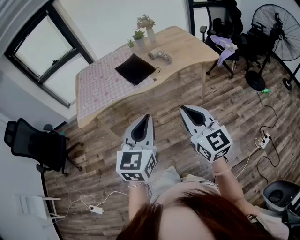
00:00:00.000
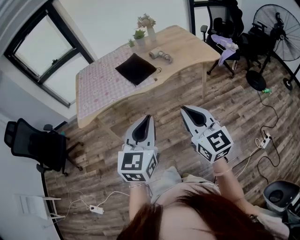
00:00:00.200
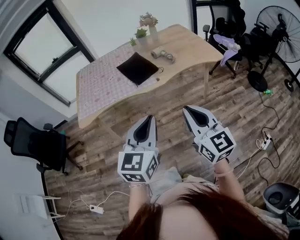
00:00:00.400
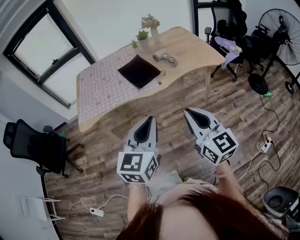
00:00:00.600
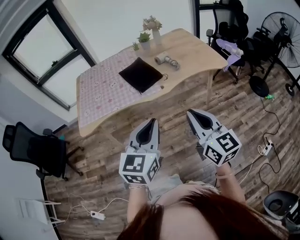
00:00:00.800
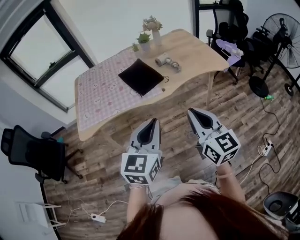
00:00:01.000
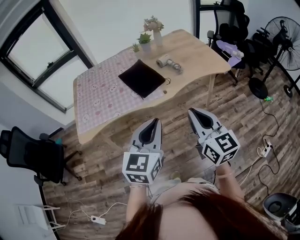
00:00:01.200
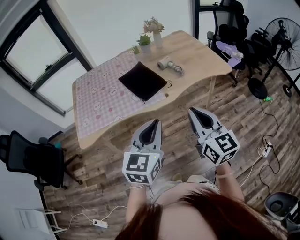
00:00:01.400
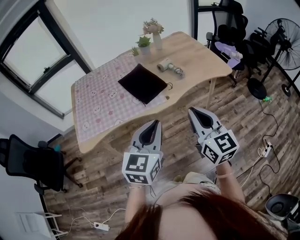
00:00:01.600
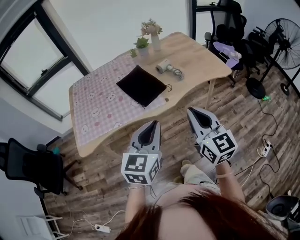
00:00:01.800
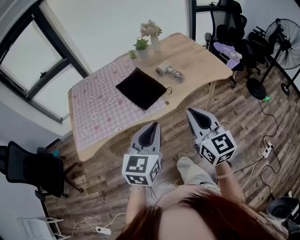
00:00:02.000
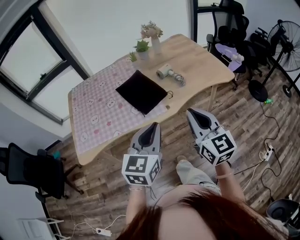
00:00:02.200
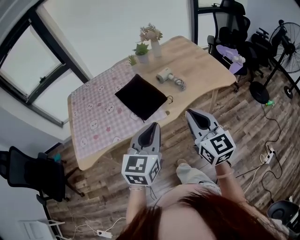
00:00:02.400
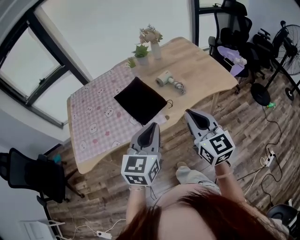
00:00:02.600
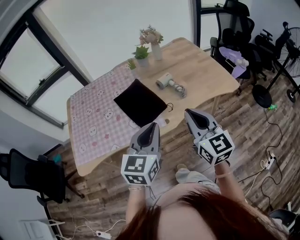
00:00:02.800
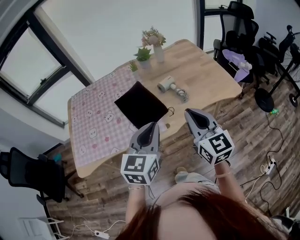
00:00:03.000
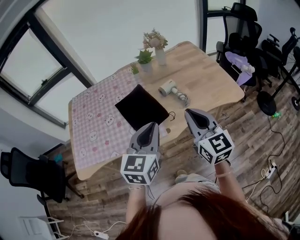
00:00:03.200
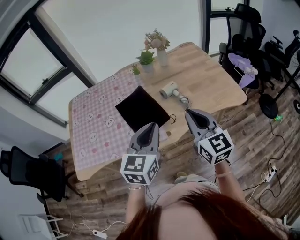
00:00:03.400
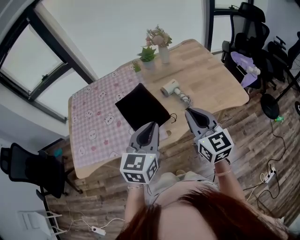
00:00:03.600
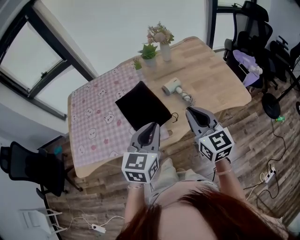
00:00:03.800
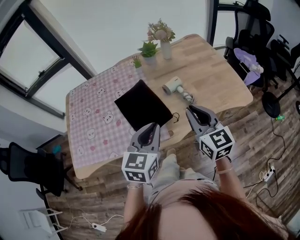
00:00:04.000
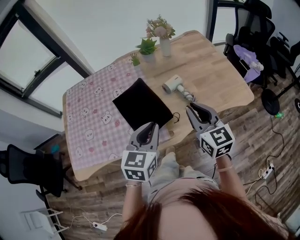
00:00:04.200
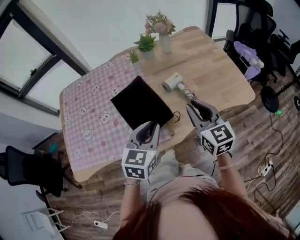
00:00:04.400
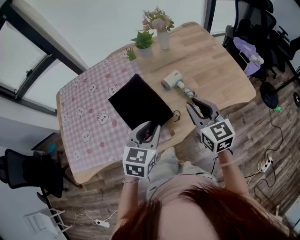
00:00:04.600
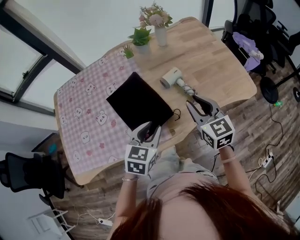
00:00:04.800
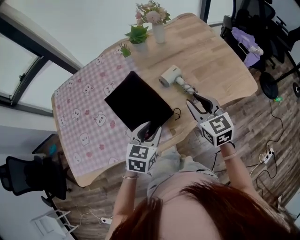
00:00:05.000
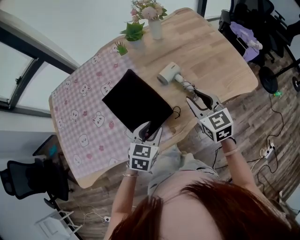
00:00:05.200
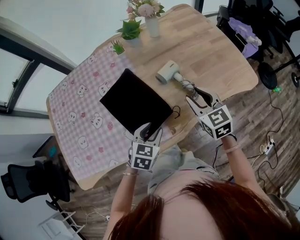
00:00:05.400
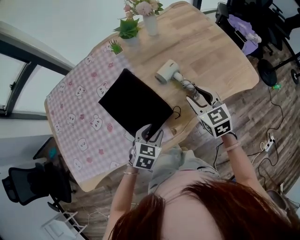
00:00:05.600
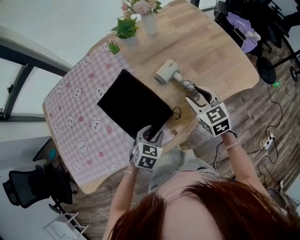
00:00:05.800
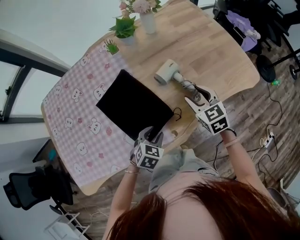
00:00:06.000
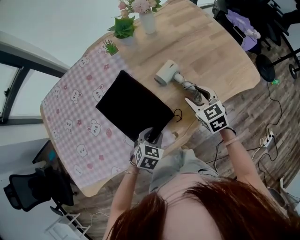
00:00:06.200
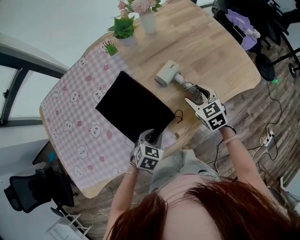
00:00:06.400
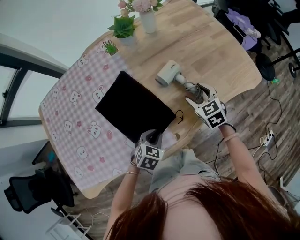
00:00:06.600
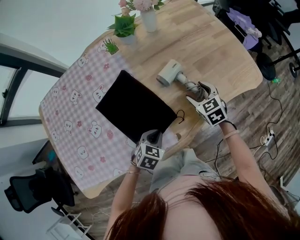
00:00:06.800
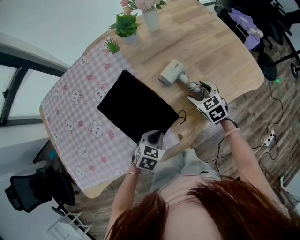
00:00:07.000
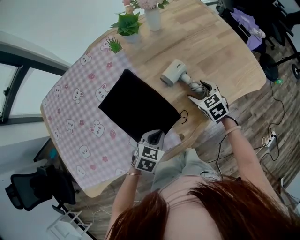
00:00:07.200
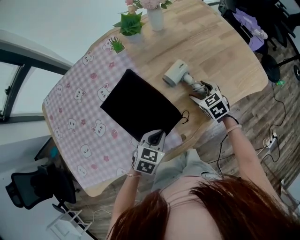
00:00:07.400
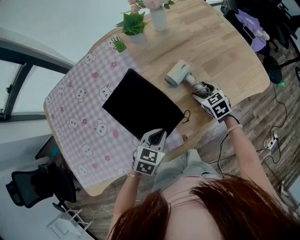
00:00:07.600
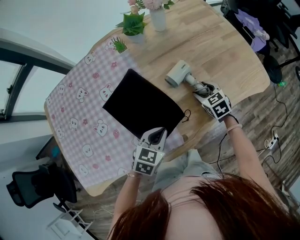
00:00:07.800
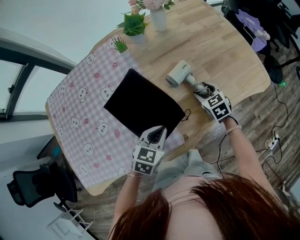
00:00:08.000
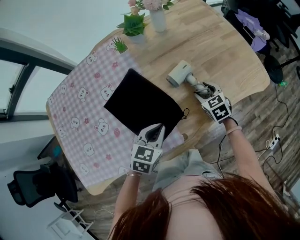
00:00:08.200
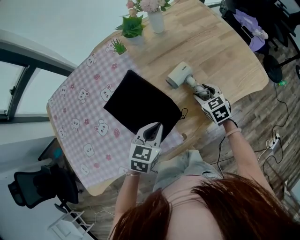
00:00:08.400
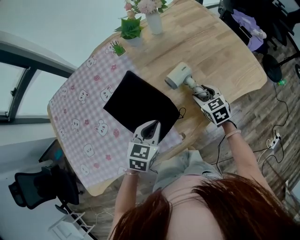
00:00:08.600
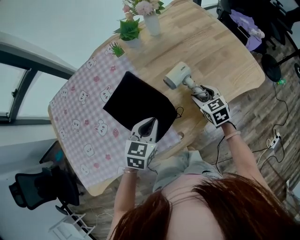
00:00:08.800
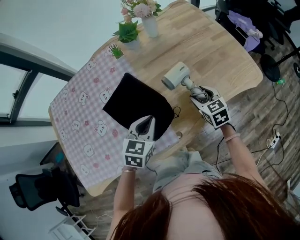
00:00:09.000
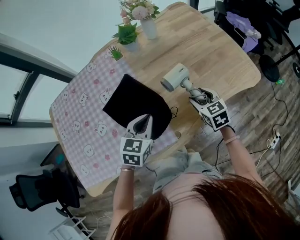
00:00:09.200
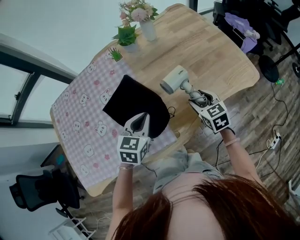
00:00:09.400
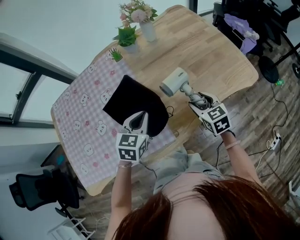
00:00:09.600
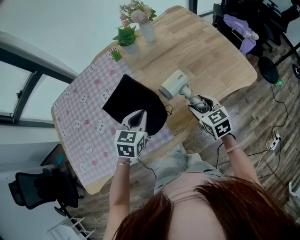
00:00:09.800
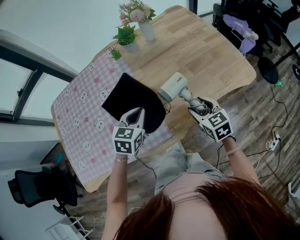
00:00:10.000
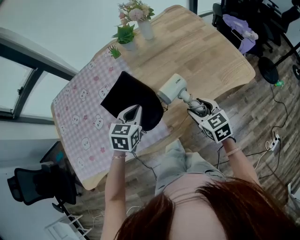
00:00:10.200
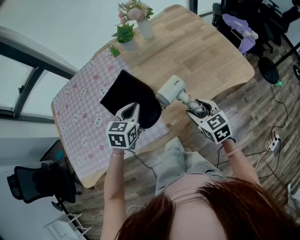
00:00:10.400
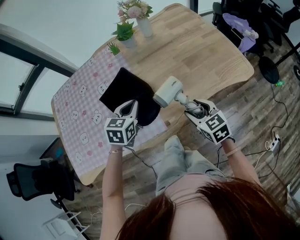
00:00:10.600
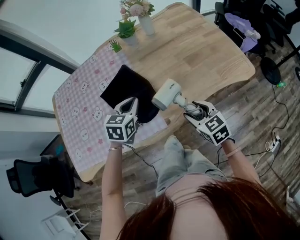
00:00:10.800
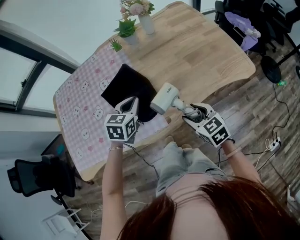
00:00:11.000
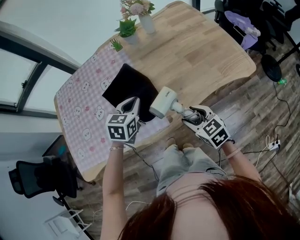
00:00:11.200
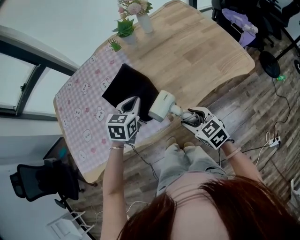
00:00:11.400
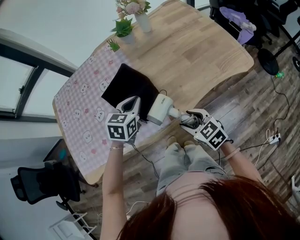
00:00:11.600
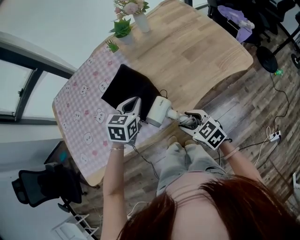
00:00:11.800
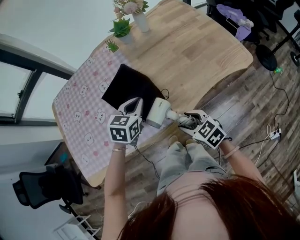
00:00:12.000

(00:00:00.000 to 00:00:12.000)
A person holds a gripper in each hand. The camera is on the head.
00:00:00.000 - 00:00:01.600: Both grippers travel together forward, about 20 cm.
00:00:01.600 - 00:00:03.000: The grippers both shift forward by some 20 cm.
00:00:03.000 - 00:00:04.400: The grippers both shift forward and downward by about 15 cm.
00:00:04.400 - 00:00:06.000: The right gripper goes about 20 cm downward and forward, swivels about 20 degrees, and opens its fingers, while the left gripper shifts roughly 25 cm downward, changes its angle by some 40 degrees, and opens.
00:00:06.000 - 00:00:07.600: The left gripper closes. Meanwhile the right gripper is displaced downward and forward by some 10 cm.
00:00:07.600 - 00:00:09.000: Both grippers travel together upward, some 5 cm.
00:00:09.000 - 00:00:10.400: The right gripper is displaced backward and upward by roughly 15 cm.
00:00:10.400 - 00:00:12.000: The right gripper travels to the left and backward by some 15 cm.

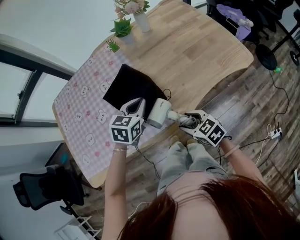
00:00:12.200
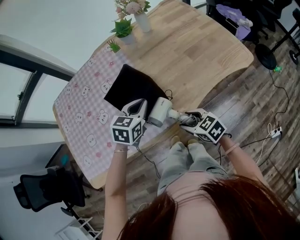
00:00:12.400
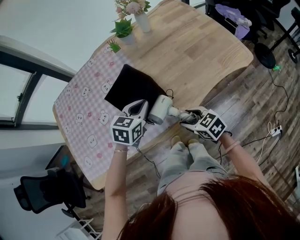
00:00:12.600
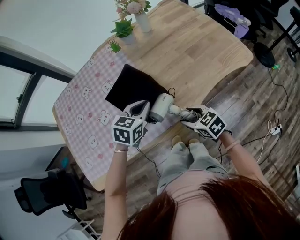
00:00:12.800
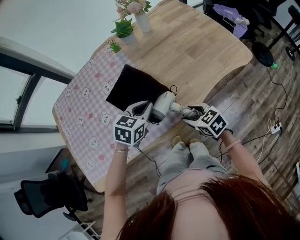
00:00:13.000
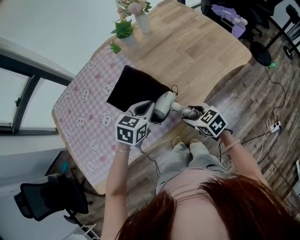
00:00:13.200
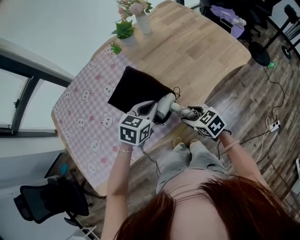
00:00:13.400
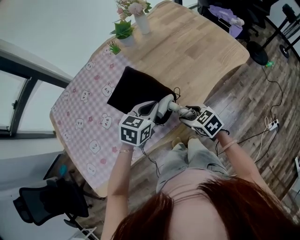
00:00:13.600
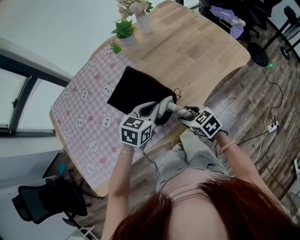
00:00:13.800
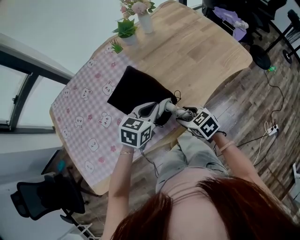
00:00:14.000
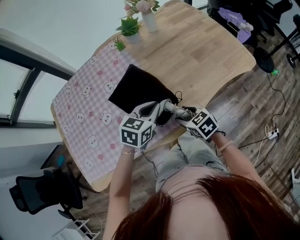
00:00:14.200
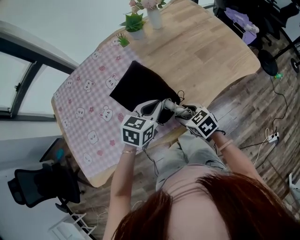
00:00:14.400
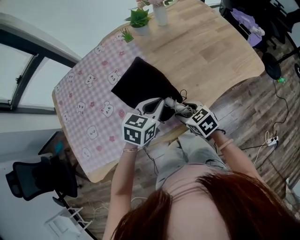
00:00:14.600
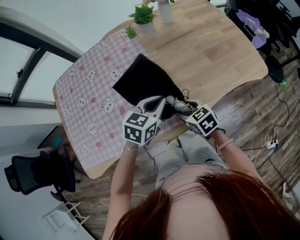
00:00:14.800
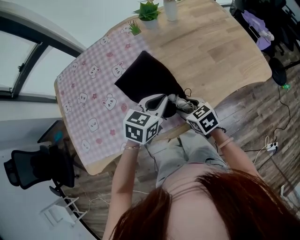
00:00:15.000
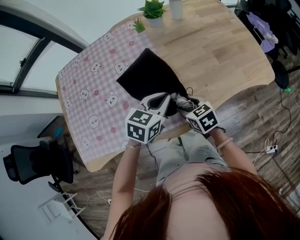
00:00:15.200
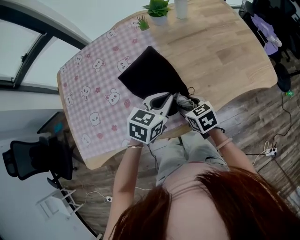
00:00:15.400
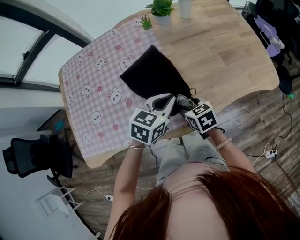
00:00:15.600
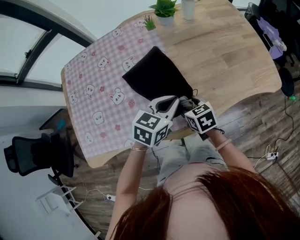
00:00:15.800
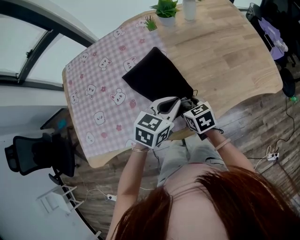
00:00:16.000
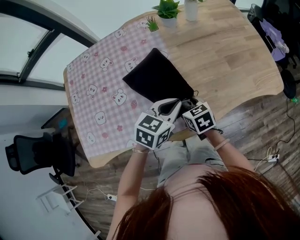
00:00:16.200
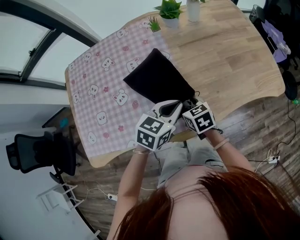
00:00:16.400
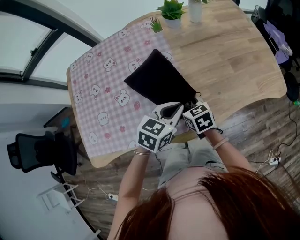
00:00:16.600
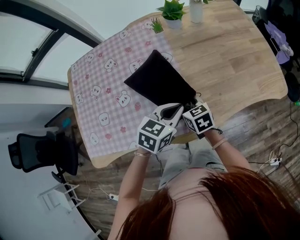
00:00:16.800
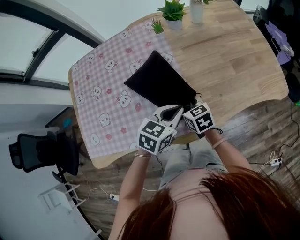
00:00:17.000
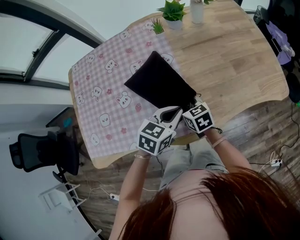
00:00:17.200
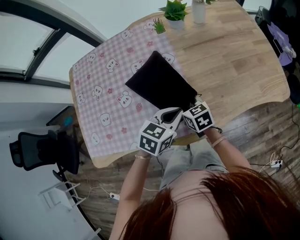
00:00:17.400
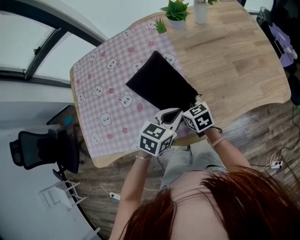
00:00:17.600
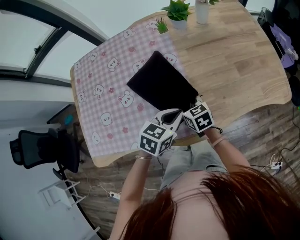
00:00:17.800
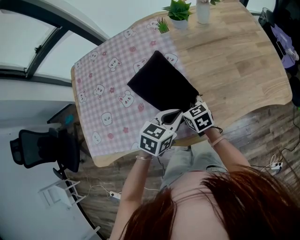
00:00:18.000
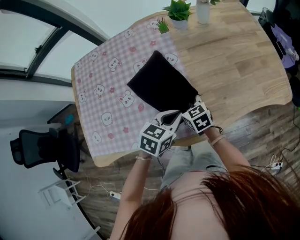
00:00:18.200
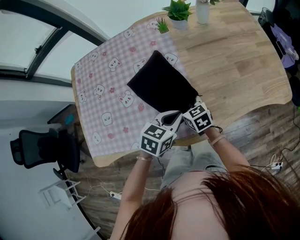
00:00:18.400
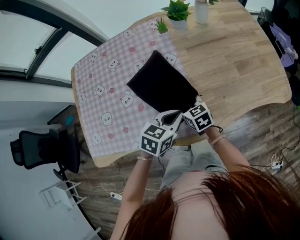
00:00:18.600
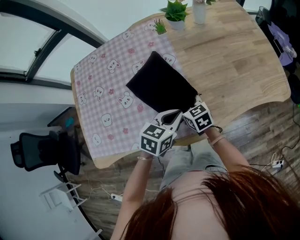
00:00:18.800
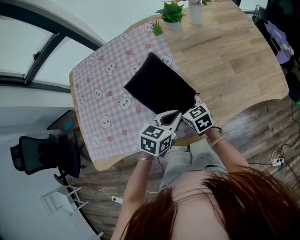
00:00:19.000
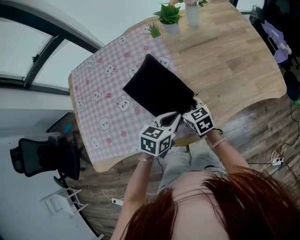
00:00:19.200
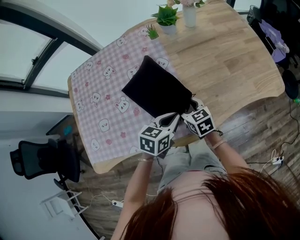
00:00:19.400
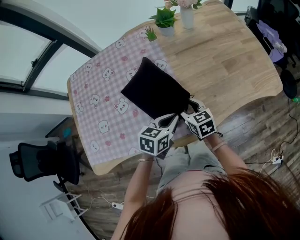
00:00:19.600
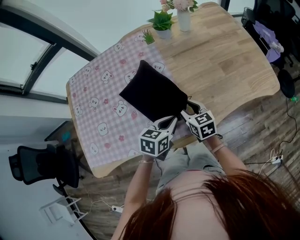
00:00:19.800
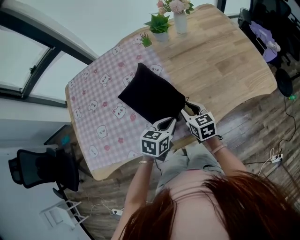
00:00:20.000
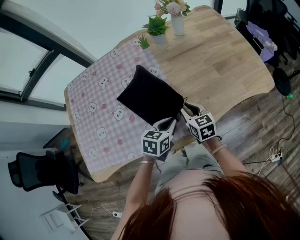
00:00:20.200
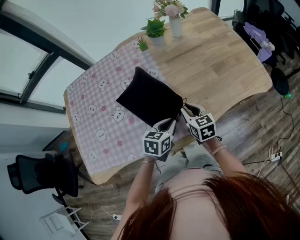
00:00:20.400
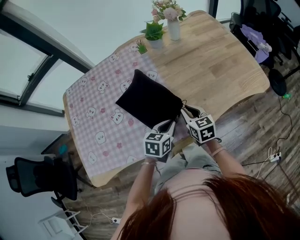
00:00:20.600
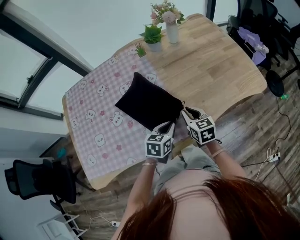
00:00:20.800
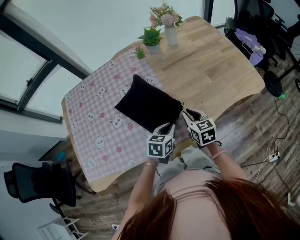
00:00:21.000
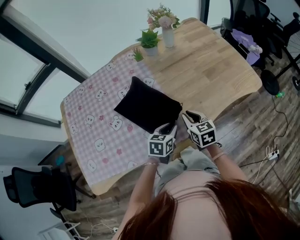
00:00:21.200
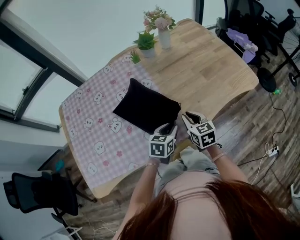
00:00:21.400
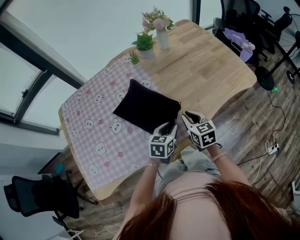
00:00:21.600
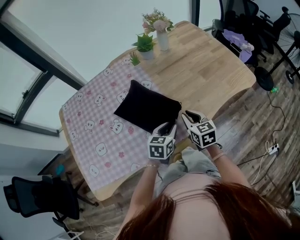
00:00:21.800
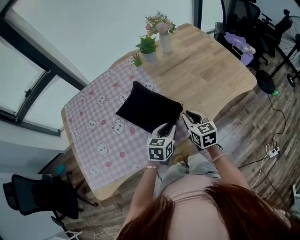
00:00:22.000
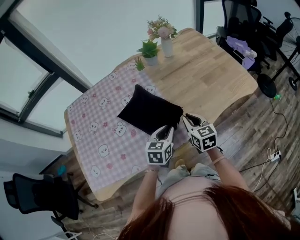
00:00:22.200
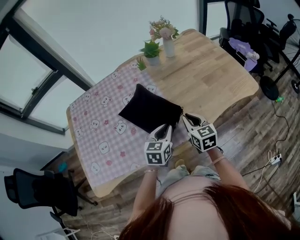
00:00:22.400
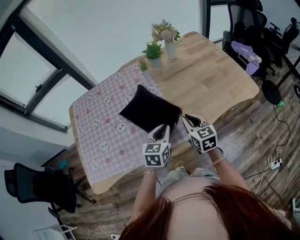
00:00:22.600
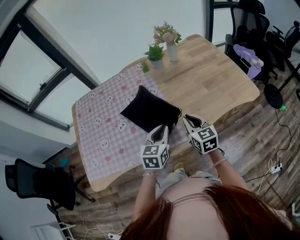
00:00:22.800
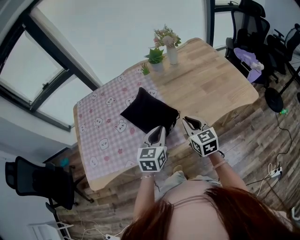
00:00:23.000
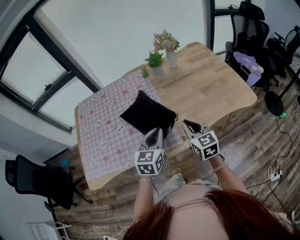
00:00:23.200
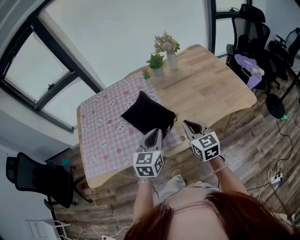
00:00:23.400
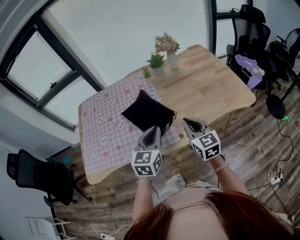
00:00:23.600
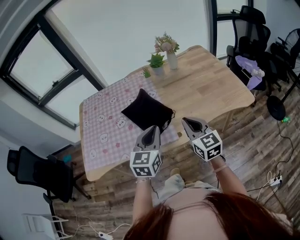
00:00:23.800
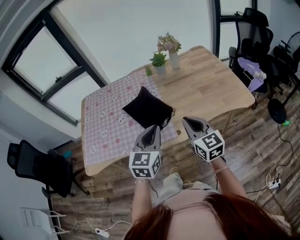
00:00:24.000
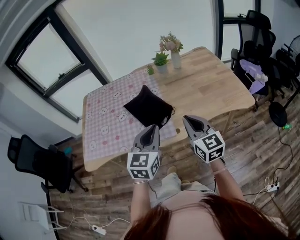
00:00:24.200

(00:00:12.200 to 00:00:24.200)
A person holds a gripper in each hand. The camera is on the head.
00:00:12.200 - 00:00:13.800: The right gripper shifts by about 5 cm.
00:00:13.800 - 00:00:15.200: The right gripper travels forward by approximately 5 cm.
00:00:15.200 - 00:00:16.600: The right gripper is displaced to the left by approximately 5 cm.
00:00:16.600 - 00:00:18.200: The grippers move only a little.
00:00:18.200 - 00:00:19.800: The right gripper is displaced to the right by approximately 5 cm.
00:00:19.800 - 00:00:21.200: The right gripper shifts by some 5 cm, and closes up.
00:00:21.200 - 00:00:22.600: The right gripper heads upward, covering about 5 cm, while the left gripper goes some 10 cm upward, and turns by about 20 degrees.
00:00:22.600 - 00:00:24.200: The right gripper is displaced upward, backward and to the right by some 20 cm, and swivels roughly 20 degrees, while the left gripper is displaced upward and backward by approximately 20 cm, and rotates about 20 degrees.
